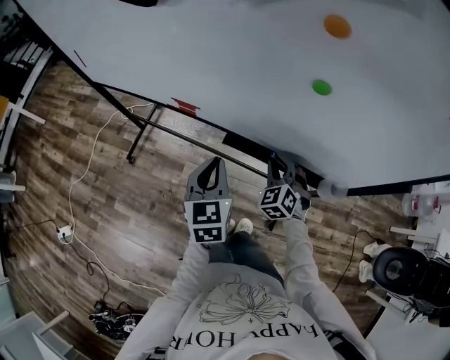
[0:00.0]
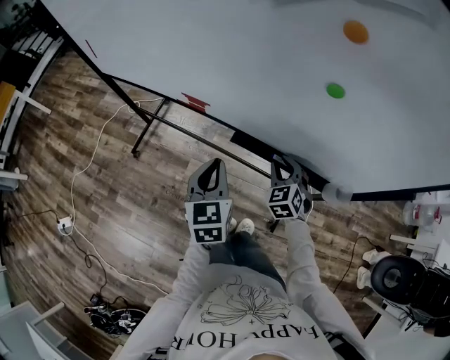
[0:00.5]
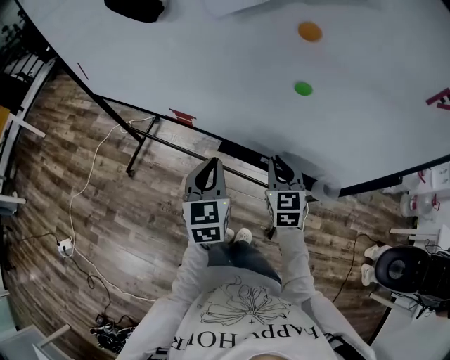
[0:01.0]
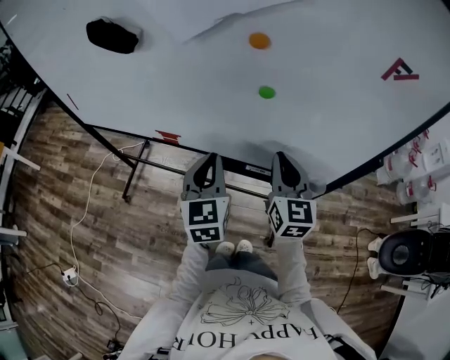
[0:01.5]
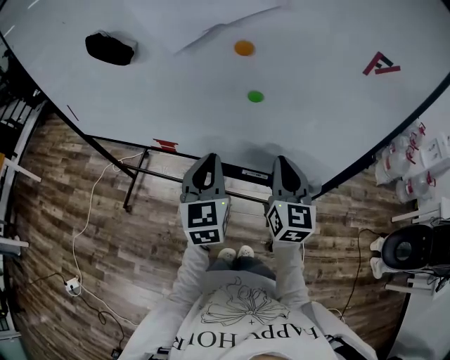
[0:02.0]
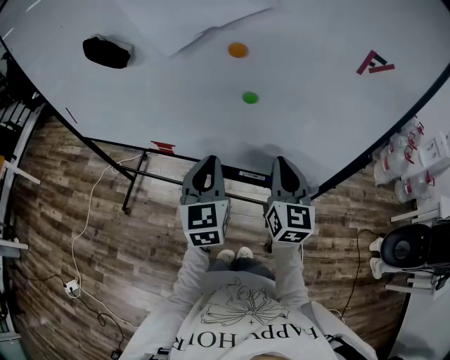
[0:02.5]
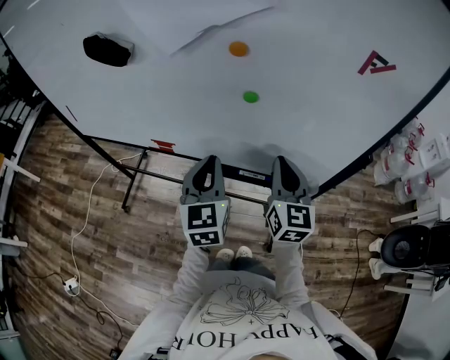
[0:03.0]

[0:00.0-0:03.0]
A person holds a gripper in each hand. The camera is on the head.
0:00.0 to 0:01.5: The right gripper moves upward, about 20 cm, and rolls clockwise, seen from behind, by about 40 degrees. Meanwhile the left gripper is displaced upward and to the right by about 10 cm.
0:01.5 to 0:03.0: The grippers stay close to where they were, moving slightly.

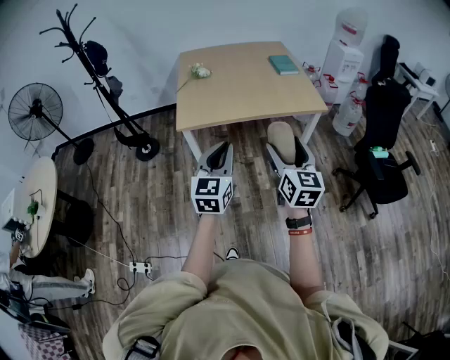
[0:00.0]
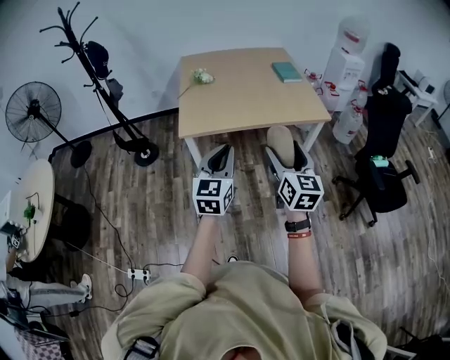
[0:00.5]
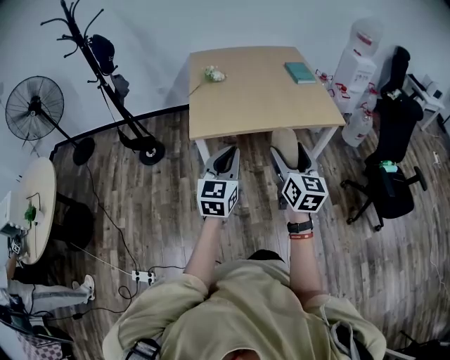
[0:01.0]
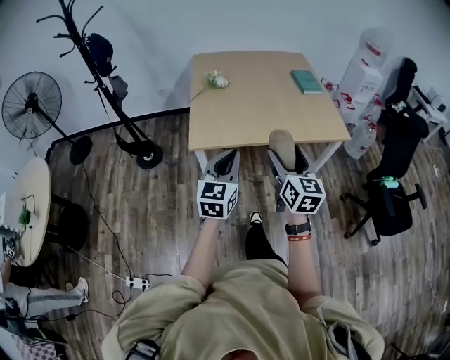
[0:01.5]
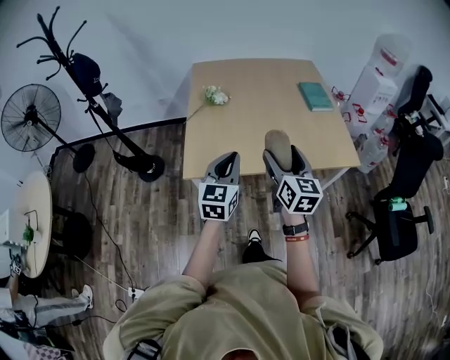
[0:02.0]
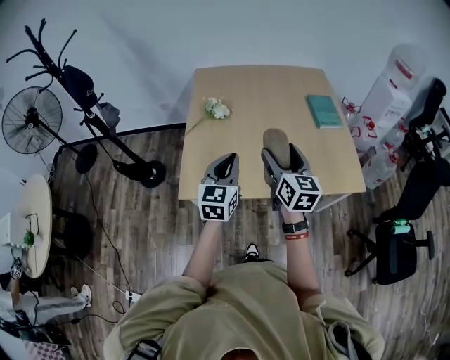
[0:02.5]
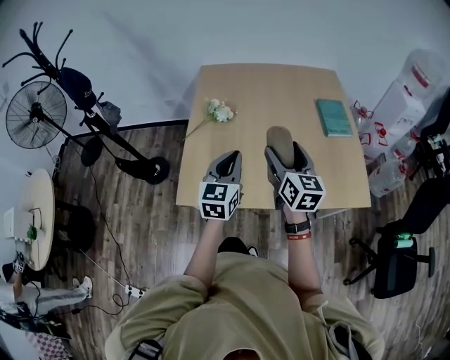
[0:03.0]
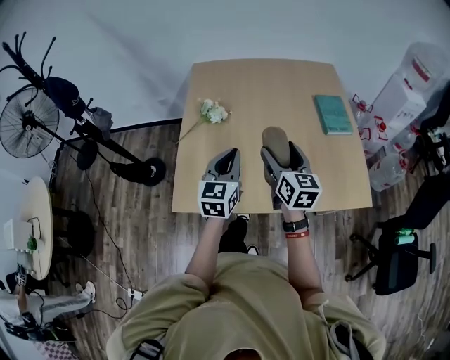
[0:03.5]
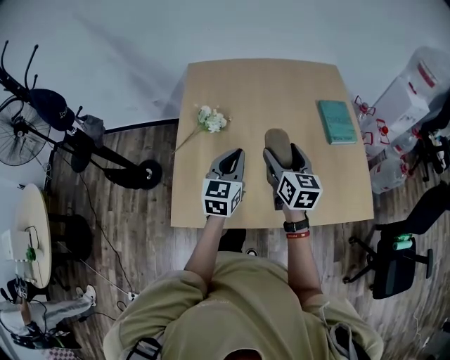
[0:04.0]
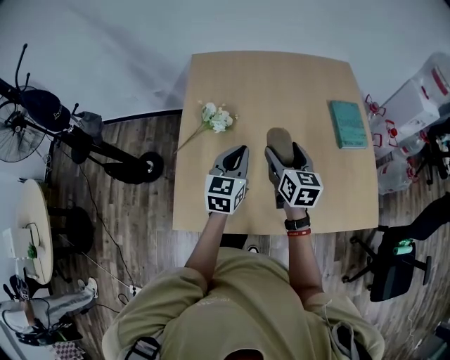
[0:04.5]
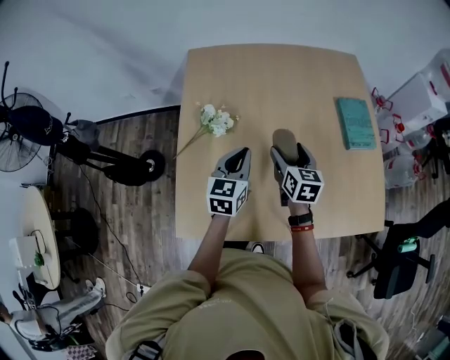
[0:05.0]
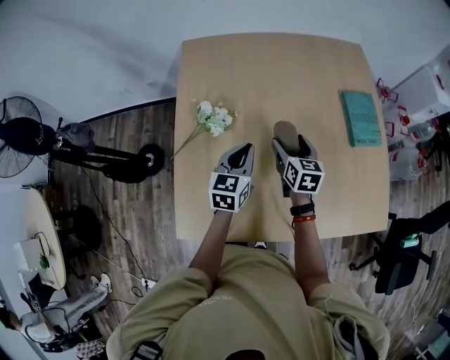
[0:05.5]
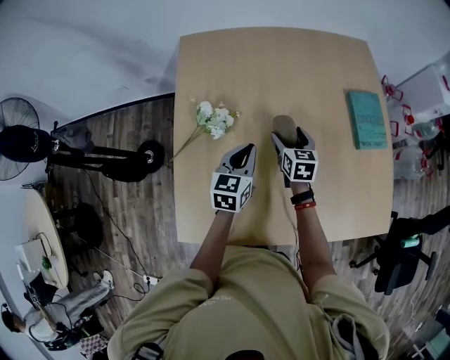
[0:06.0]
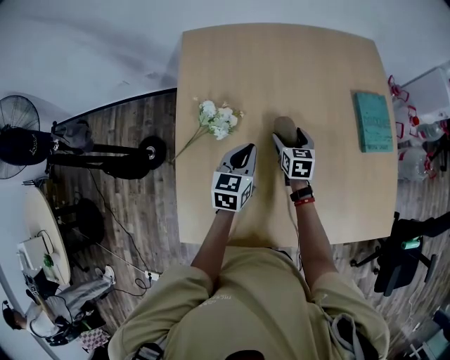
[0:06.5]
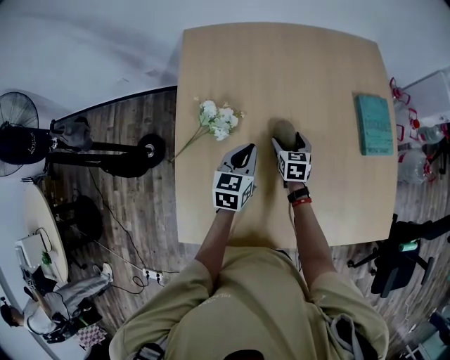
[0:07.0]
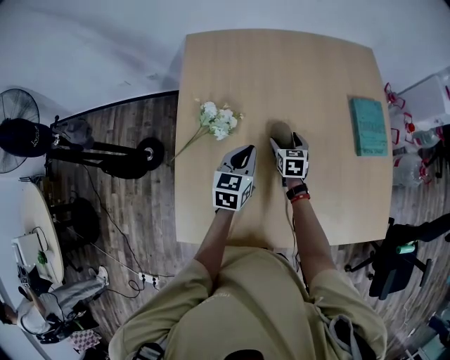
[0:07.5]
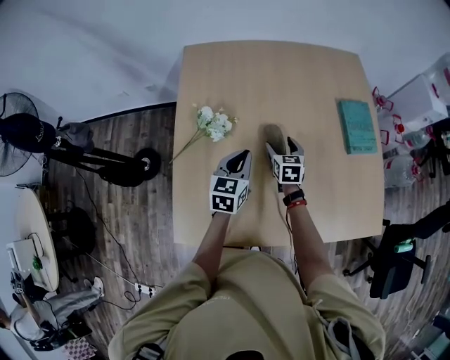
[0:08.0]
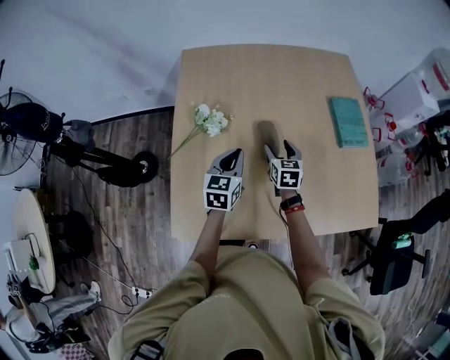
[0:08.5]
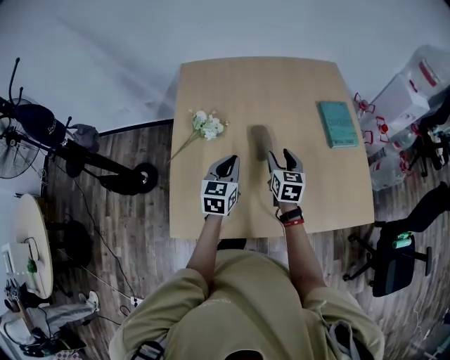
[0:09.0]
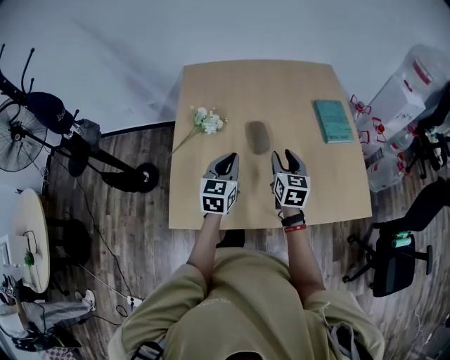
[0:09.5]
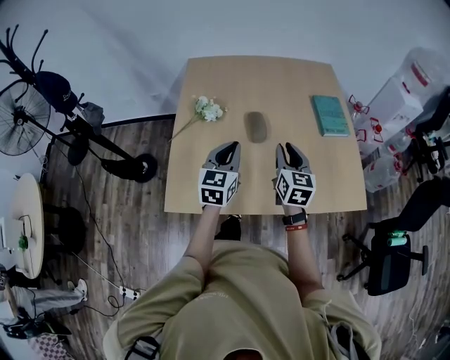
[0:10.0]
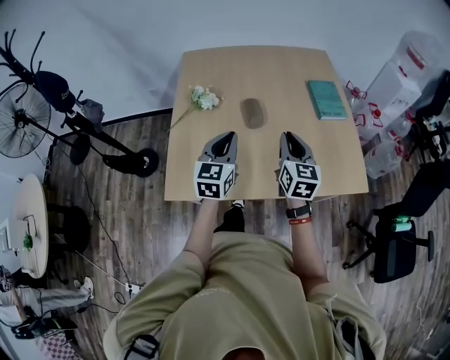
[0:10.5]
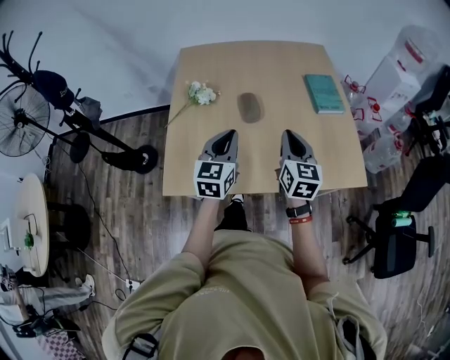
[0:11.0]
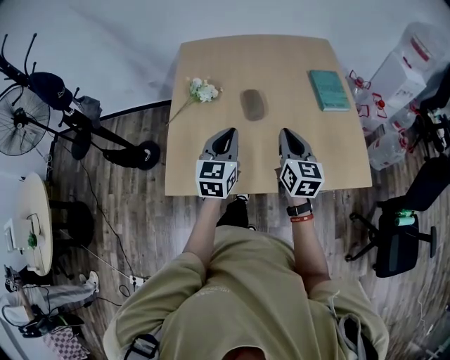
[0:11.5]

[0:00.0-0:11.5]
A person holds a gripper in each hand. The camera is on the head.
0:00.0 to 0:02.0: The pair of grippers is taken forward, roughly 40 cm.
0:02.0 to 0:04.0: Both grippers move forward, approximately 40 cm.
0:04.0 to 0:06.0: Both grippers move forward and downward, roughly 30 cm.
0:06.0 to 0:07.5: The right gripper travels downward by some 5 cm.
0:07.5 to 0:09.5: The two grippers go approximately 30 cm backward and upward. The right gripper turns by roughly 20 degrees, and closes up.
0:09.5 to 0:11.5: The right gripper moves backward and upward, some 10 cm, and closes up, while the left gripper travels backward by about 10 cm.

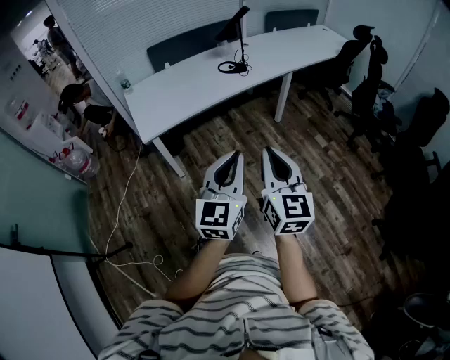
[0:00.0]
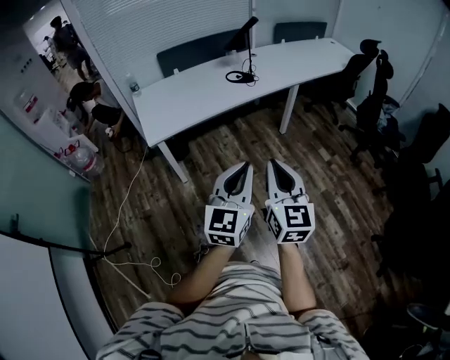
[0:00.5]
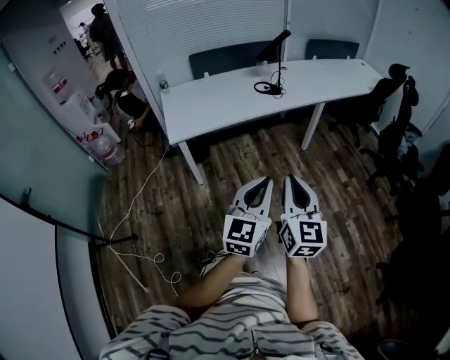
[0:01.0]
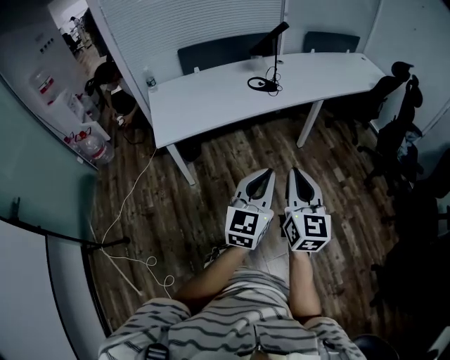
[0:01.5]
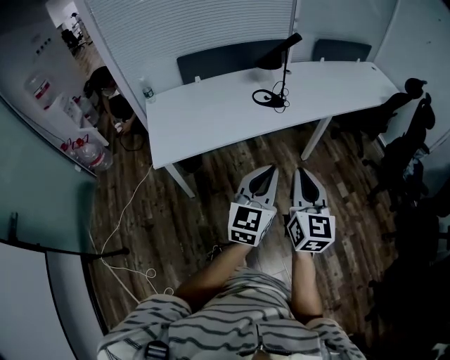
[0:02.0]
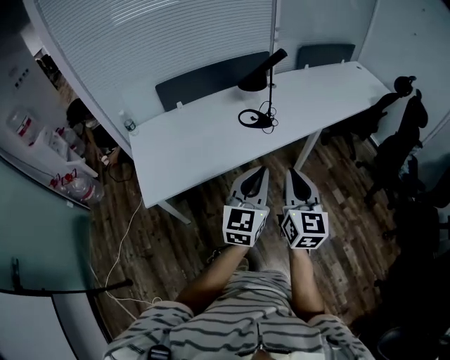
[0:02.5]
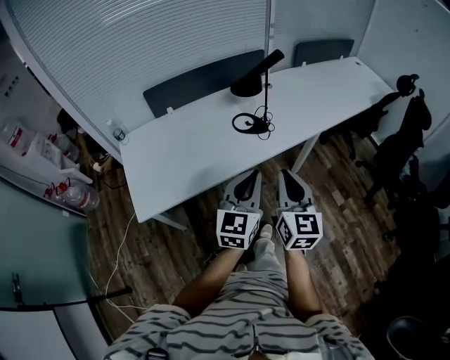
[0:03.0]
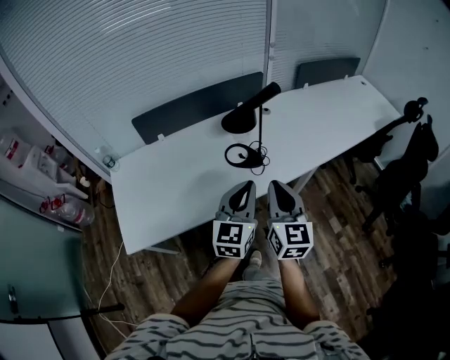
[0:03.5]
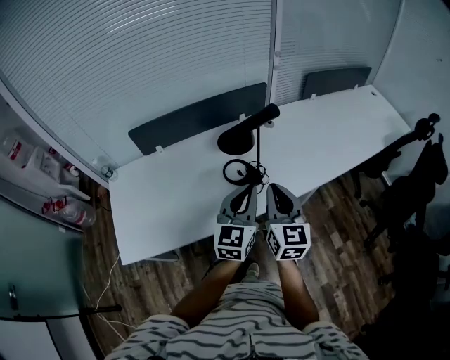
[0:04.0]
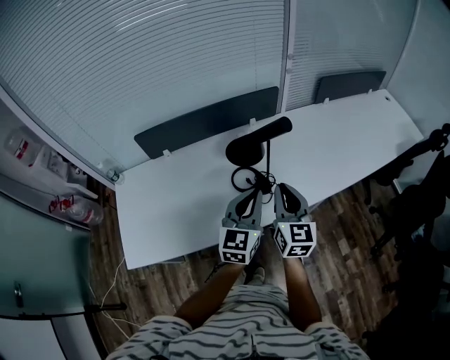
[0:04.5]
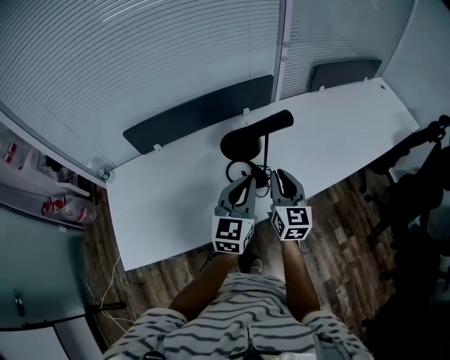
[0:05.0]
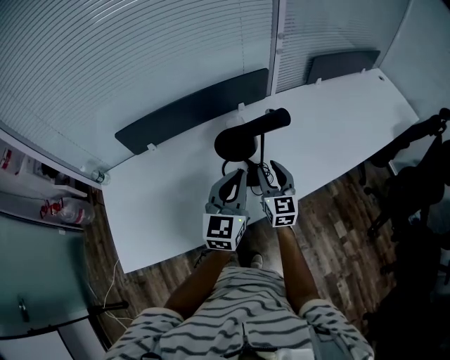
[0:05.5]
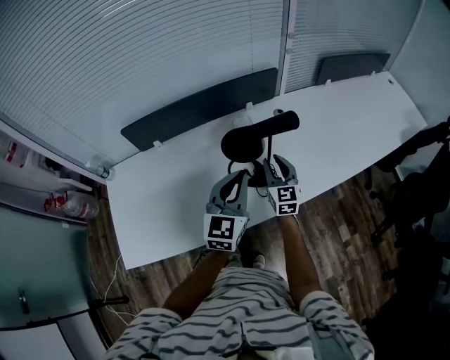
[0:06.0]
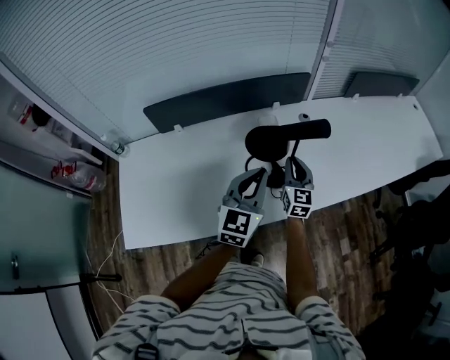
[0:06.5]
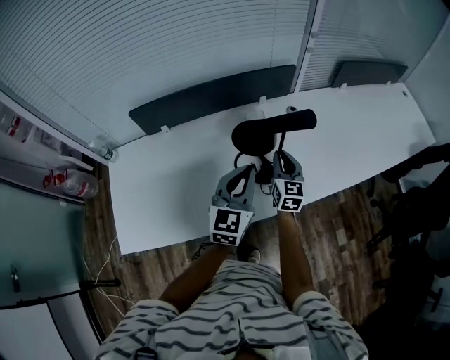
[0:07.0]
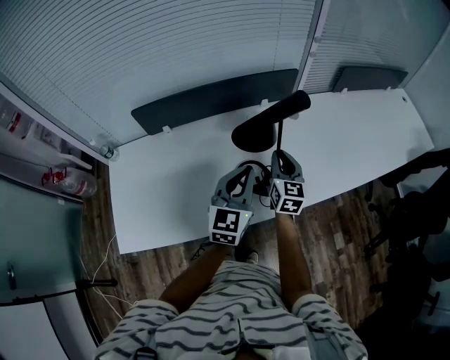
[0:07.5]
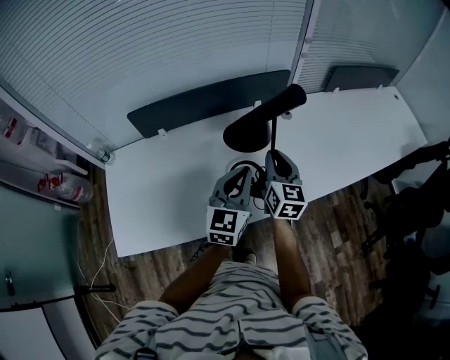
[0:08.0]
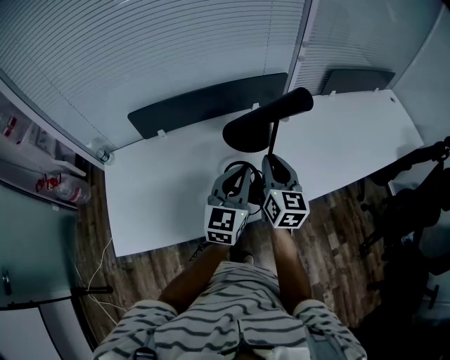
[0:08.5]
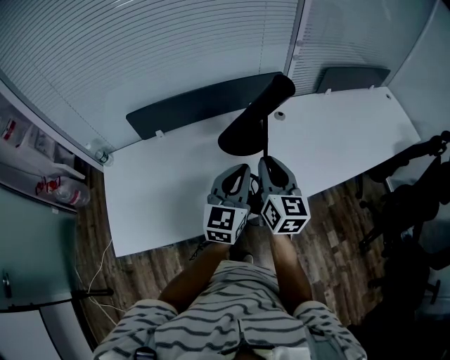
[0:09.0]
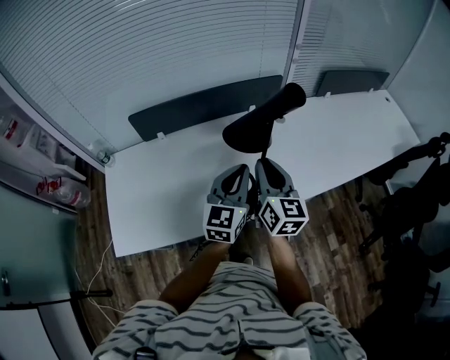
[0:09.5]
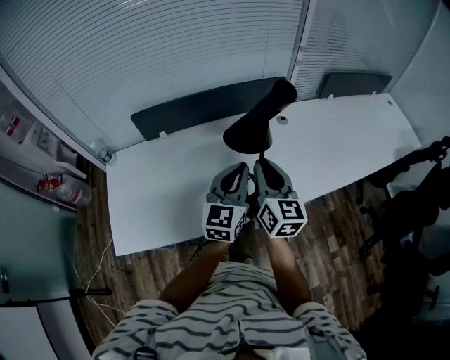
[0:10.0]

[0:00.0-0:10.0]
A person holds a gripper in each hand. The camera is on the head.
0:00.0 to 0:02.0: The two grippers go some 25 cm forward.
0:02.0 to 0:04.0: The two grippers travel together, forward, some 50 cm.
0:04.0 to 0:06.0: The left gripper is displaced forward by some 10 cm. Meanwhile the right gripper shifts about 25 cm forward and downward, and opens up.
0:06.0 to 0:08.0: The right gripper goes approximately 10 cm upward.
0:08.0 to 0:10.0: The right gripper moves backward and upward, roughly 10 cm.

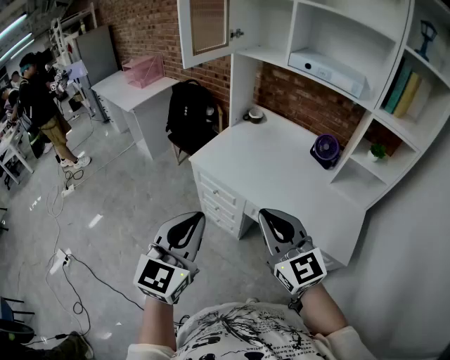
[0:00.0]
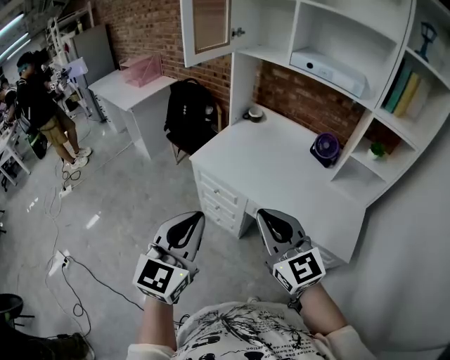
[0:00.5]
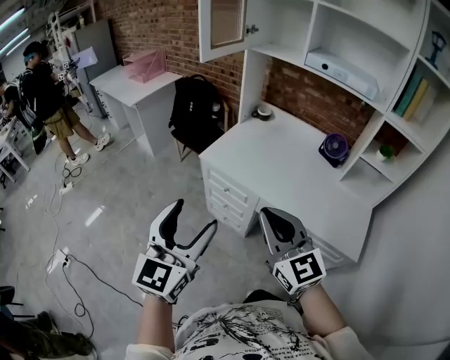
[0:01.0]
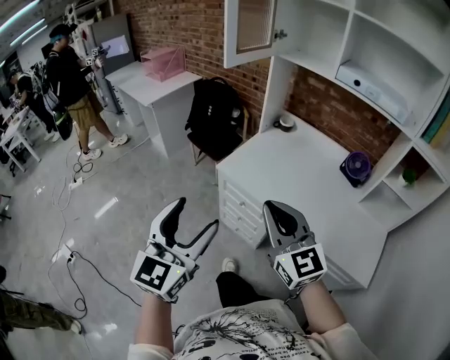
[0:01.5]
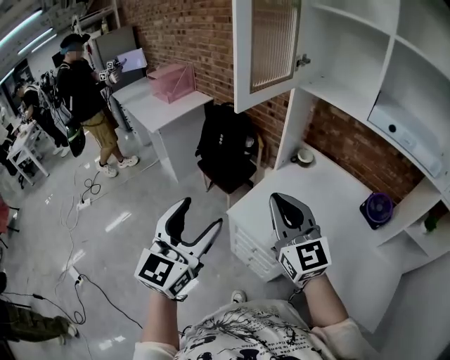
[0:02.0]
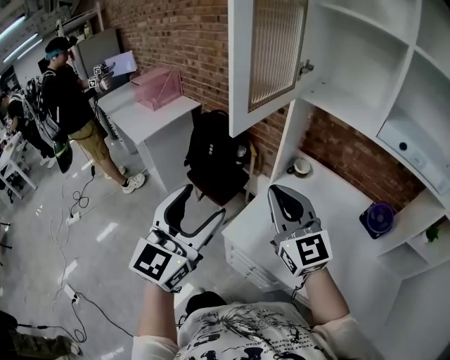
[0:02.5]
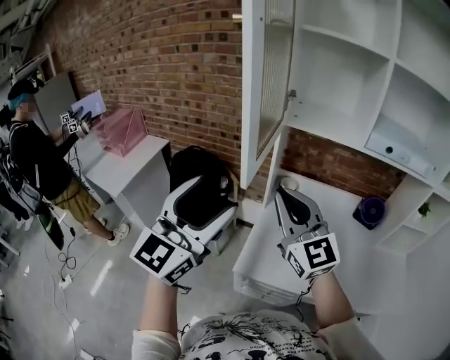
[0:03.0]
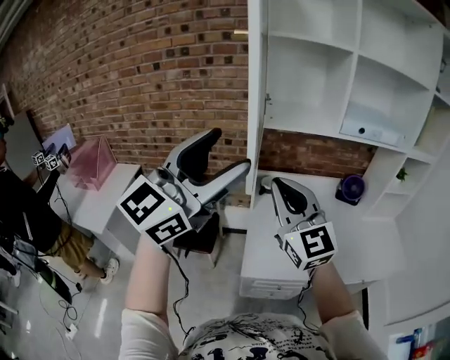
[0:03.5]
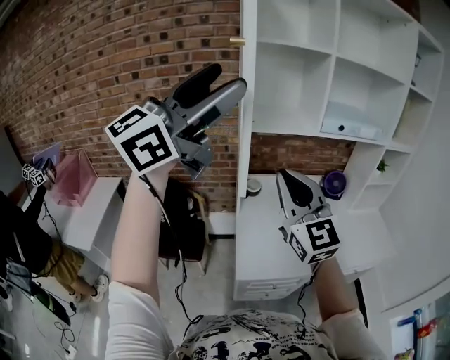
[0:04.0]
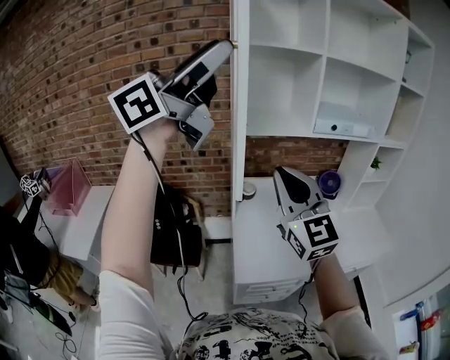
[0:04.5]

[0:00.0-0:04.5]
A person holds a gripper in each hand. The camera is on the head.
0:00.0 to 0:02.0: The grippers both shift forward and to the left by roughly 40 cm. The left gripper opens.
0:02.0 to 0:04.5: The left gripper shifts about 40 cm upward, and angles its fingers upward, by roughly 30 degrees. Meanwhile the right gripper shifts by about 25 cm, and swivels some 50 degrees.
